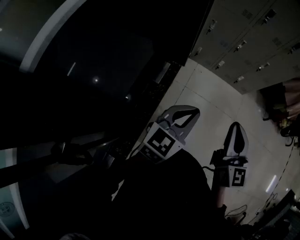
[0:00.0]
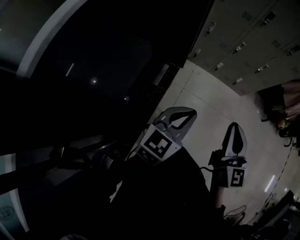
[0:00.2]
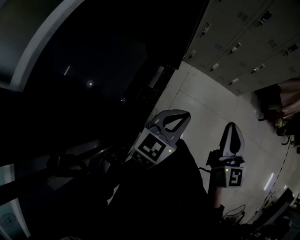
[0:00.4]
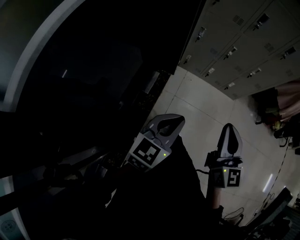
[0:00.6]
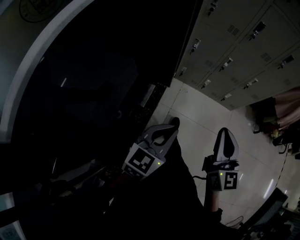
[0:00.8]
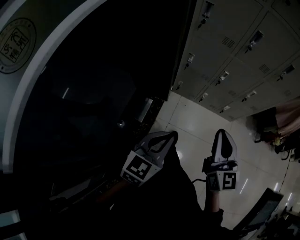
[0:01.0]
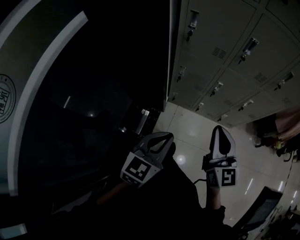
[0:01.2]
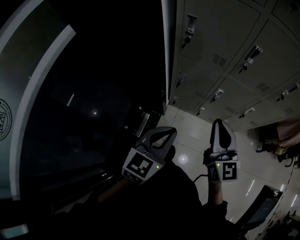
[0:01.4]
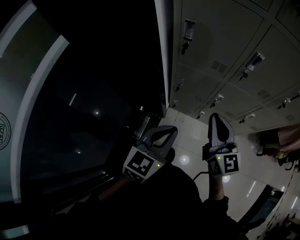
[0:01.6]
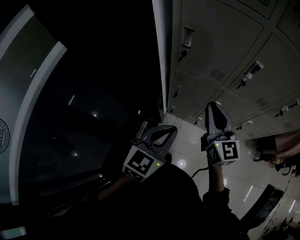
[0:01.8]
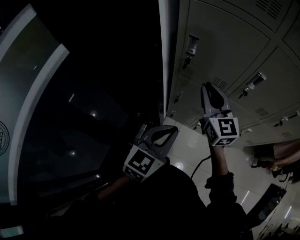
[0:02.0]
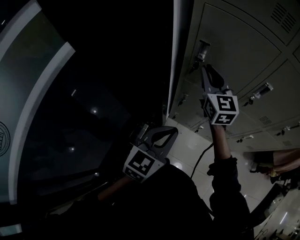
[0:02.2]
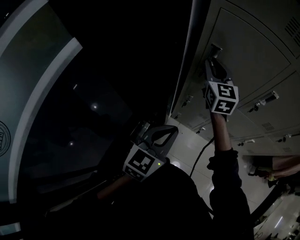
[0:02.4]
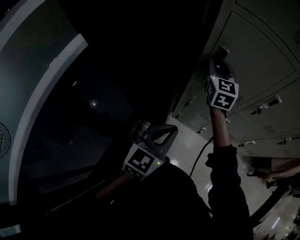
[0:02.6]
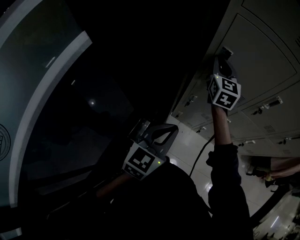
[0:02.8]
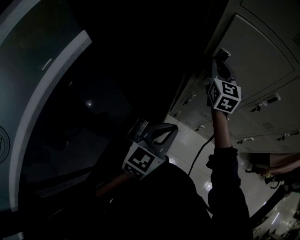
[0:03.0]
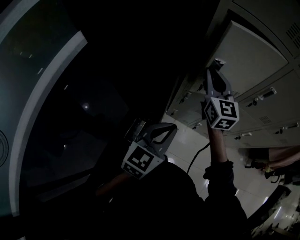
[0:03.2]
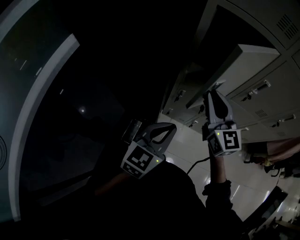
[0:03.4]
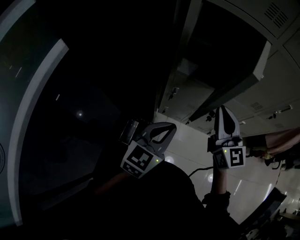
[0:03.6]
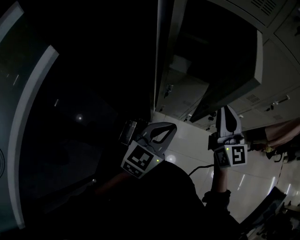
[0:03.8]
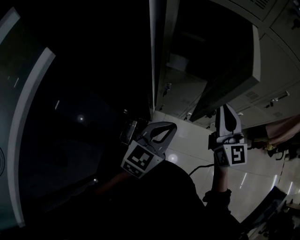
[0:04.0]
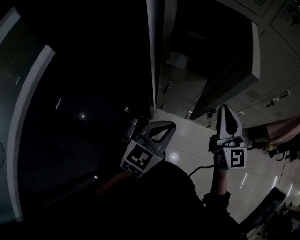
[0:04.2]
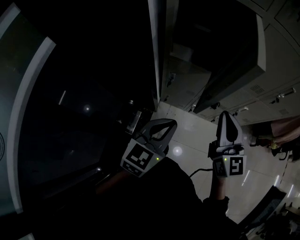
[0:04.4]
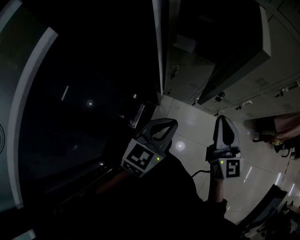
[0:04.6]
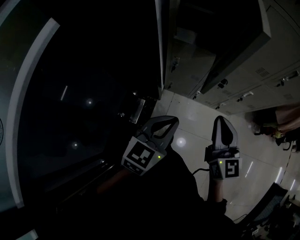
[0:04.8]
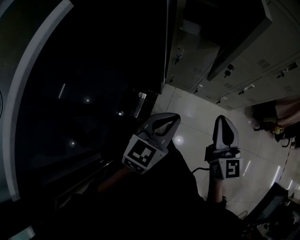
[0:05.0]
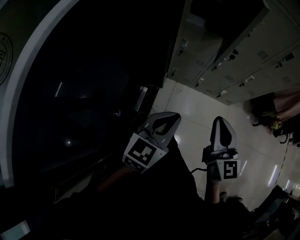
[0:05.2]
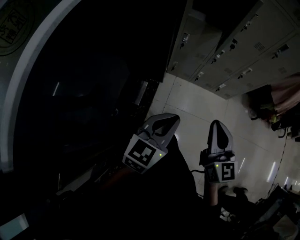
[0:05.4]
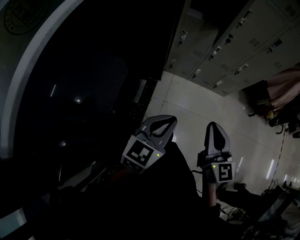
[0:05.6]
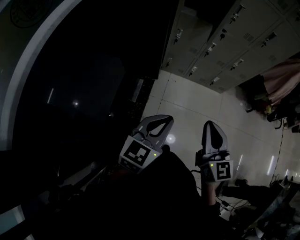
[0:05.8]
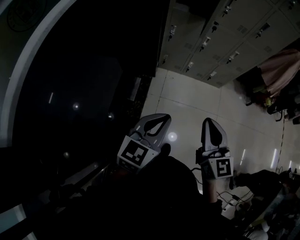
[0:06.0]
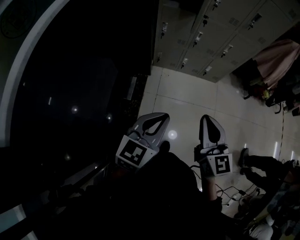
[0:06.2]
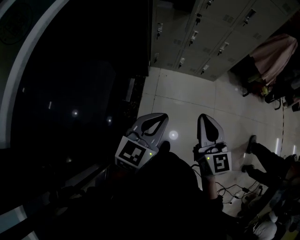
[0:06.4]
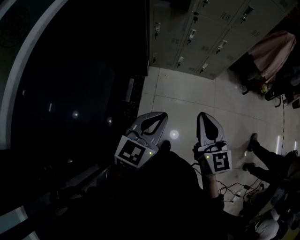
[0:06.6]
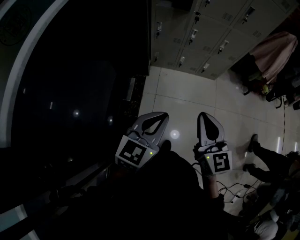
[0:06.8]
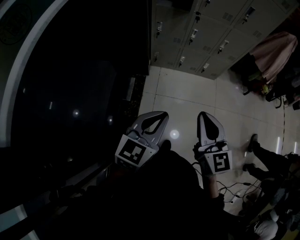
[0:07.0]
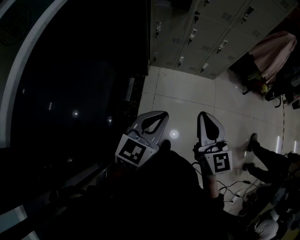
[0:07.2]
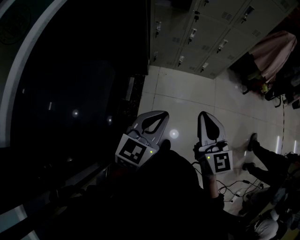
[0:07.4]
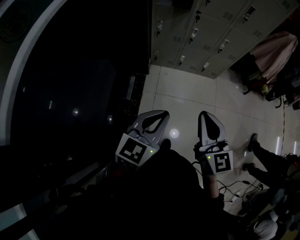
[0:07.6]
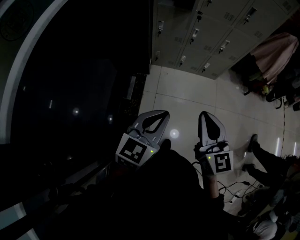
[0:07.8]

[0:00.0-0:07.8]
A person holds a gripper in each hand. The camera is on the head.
0:00.0 to 0:01.6: The two grippers travel together, forward, approximately 50 cm.
0:01.6 to 0:03.2: The right gripper travels forward and to the left by approximately 25 cm, while the left gripper shifts about 10 cm to the left and forward.
0:03.2 to 0:04.6: The right gripper heads backward and to the right, covering some 30 cm; the left gripper goes some 10 cm to the right and backward.
0:04.6 to 0:06.2: Both grippers move backward, some 40 cm.
0:06.2 to 0:07.8: The grippers move only a little.

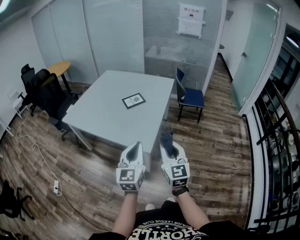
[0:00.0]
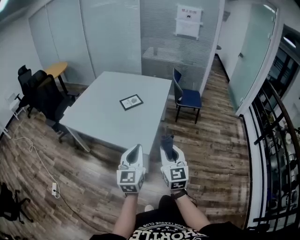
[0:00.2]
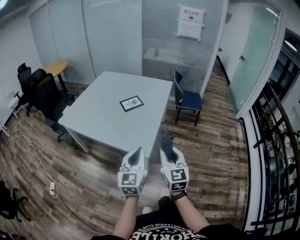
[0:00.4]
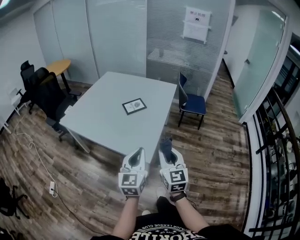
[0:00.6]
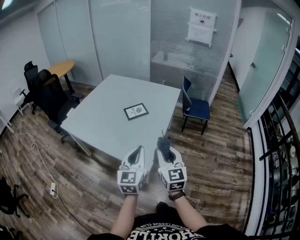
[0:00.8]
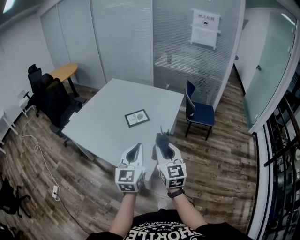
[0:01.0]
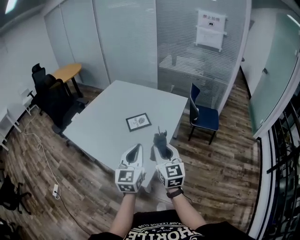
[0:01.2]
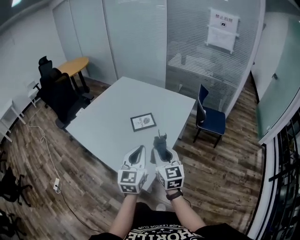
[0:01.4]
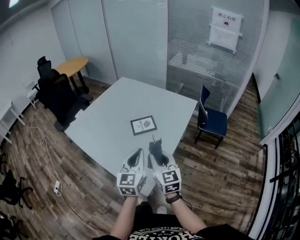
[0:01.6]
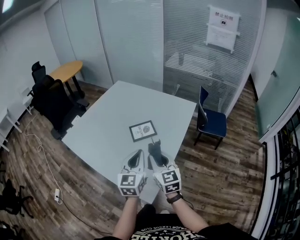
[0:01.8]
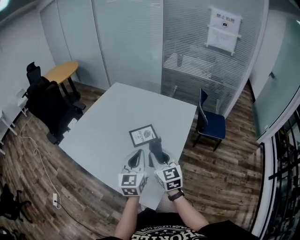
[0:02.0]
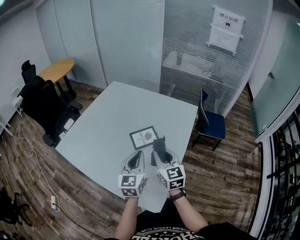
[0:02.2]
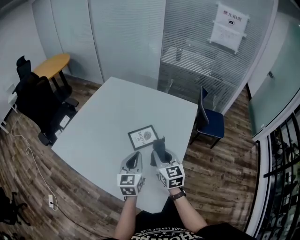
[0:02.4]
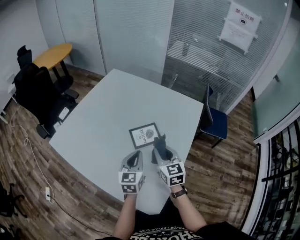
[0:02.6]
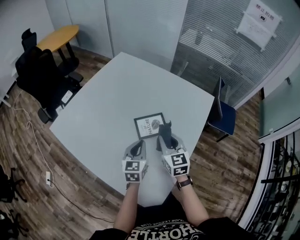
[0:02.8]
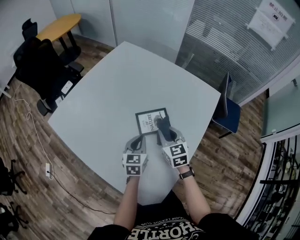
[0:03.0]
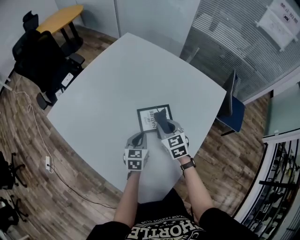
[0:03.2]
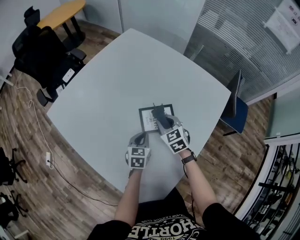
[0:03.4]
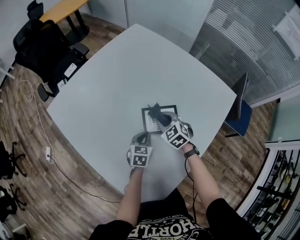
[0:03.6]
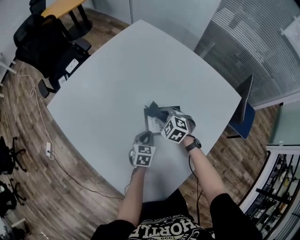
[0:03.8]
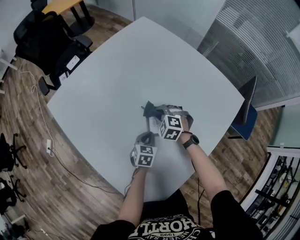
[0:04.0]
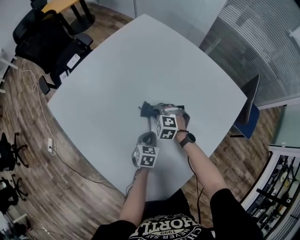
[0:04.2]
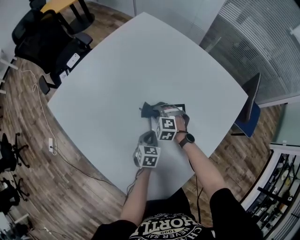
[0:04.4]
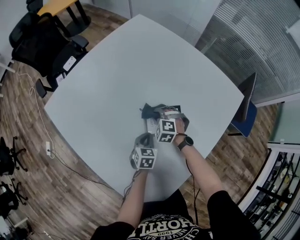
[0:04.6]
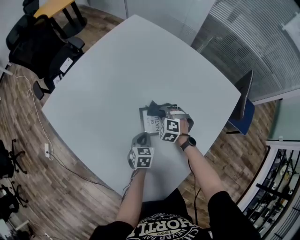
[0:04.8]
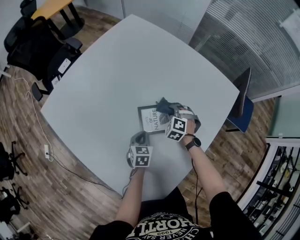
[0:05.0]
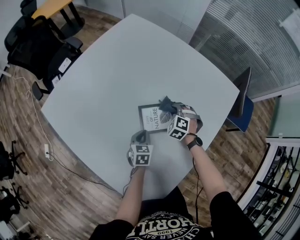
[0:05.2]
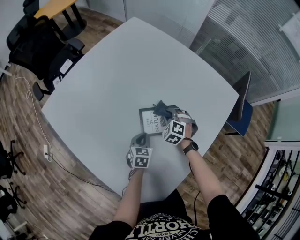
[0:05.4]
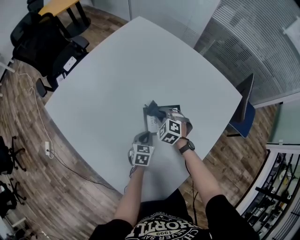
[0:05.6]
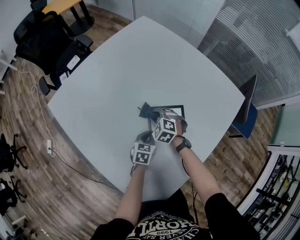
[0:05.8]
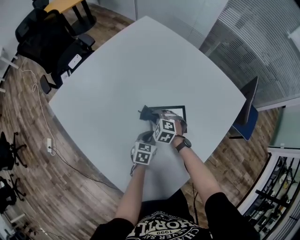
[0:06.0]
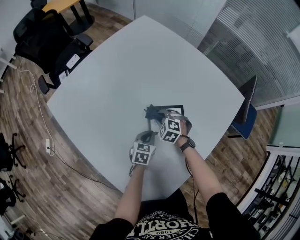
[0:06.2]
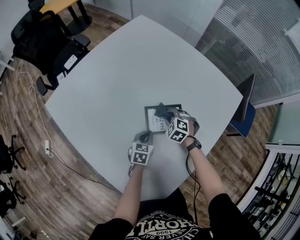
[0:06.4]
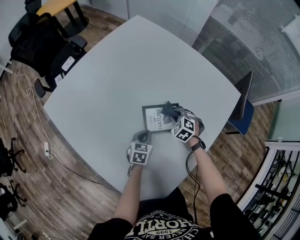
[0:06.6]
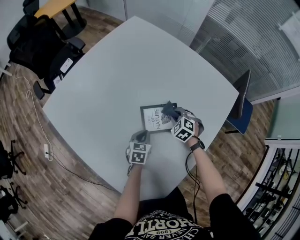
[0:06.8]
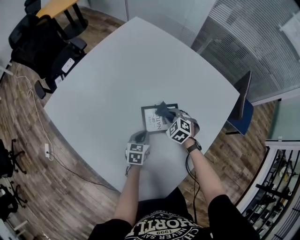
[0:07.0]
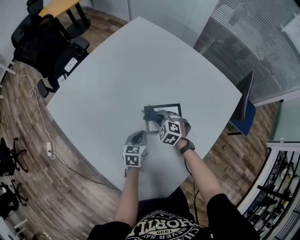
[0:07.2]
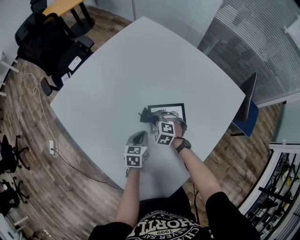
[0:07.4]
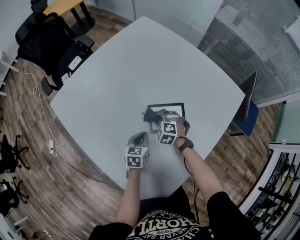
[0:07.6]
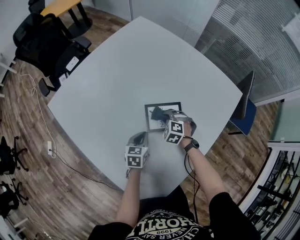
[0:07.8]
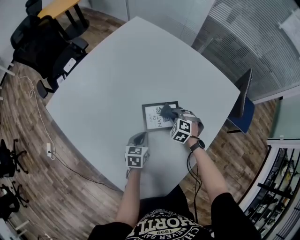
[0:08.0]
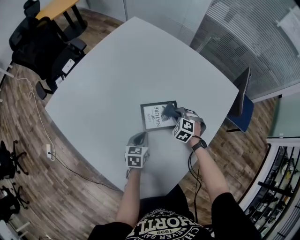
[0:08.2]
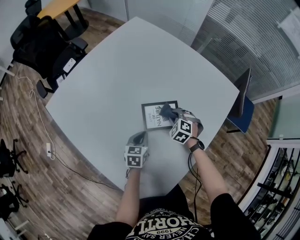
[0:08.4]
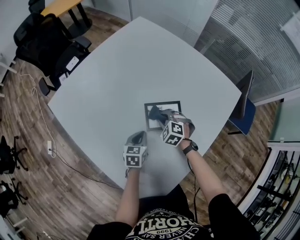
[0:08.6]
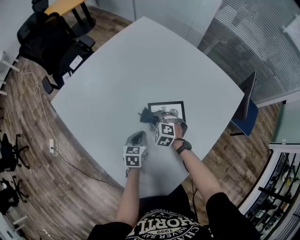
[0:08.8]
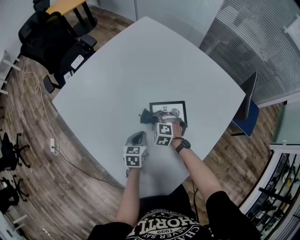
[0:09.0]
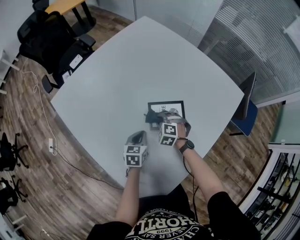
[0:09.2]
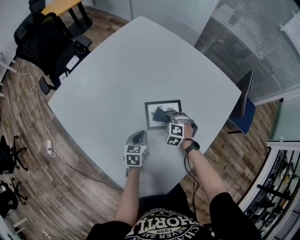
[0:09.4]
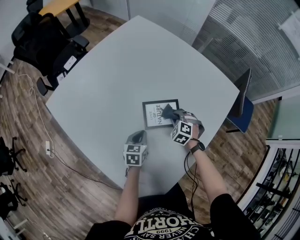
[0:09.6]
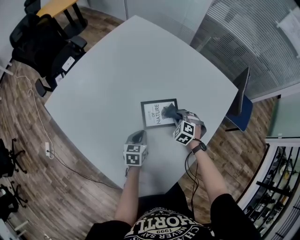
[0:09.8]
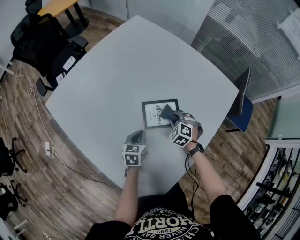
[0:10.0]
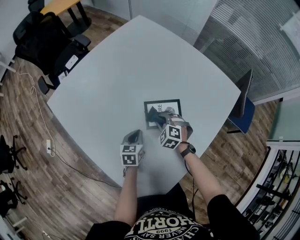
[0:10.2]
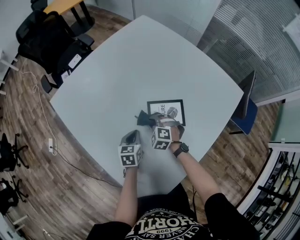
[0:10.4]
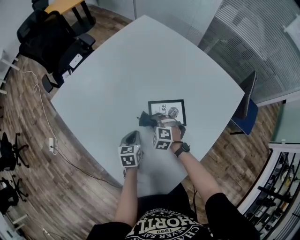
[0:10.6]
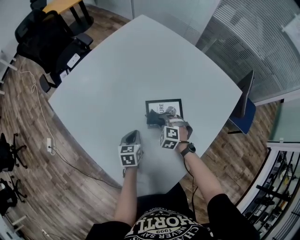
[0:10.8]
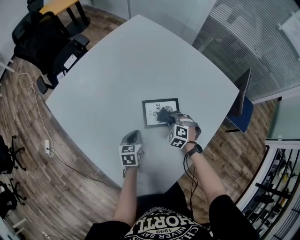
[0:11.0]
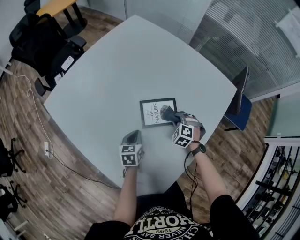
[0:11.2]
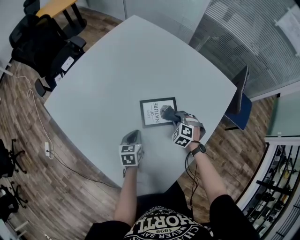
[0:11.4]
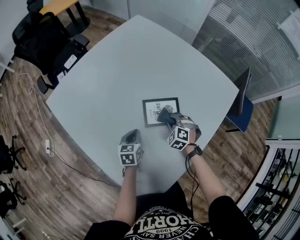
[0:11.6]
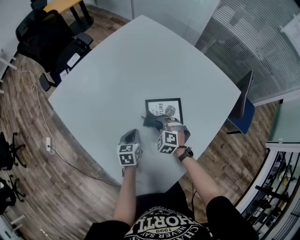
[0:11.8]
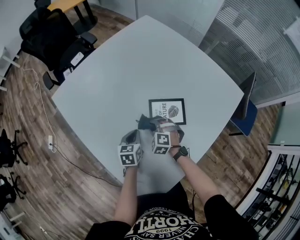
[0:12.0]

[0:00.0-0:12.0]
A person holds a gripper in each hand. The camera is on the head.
0:00.0 to 0:01.6: Both grippers travel together forward, approximately 35 cm. The right gripper turns by about 20 degrees.
0:01.6 to 0:03.0: The two grippers go about 40 cm forward and downward. The left gripper swivels roughly 20 degrees.
0:03.0 to 0:04.4: The right gripper travels downward, forward and to the left by some 25 cm, and rolls counterclockwise, seen from behind, by about 60 degrees; the left gripper moves downward, approximately 20 cm, and turns by some 20 degrees.
0:04.4 to 0:06.0: The right gripper moves roughly 15 cm to the right and comes back.
0:06.0 to 0:07.6: The right gripper goes to the right and returns, approximately 15 cm each way, while the left gripper goes some 5 cm to the left.
0:07.6 to 0:09.0: The right gripper moves approximately 15 cm to the right and comes back.
0:09.0 to 0:10.4: The right gripper goes to the right and returns, about 15 cm each way.
0:10.4 to 0:12.0: The right gripper travels to the right and back again, approximately 20 cm each way.

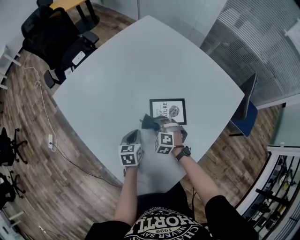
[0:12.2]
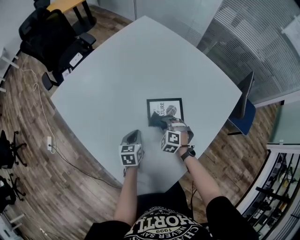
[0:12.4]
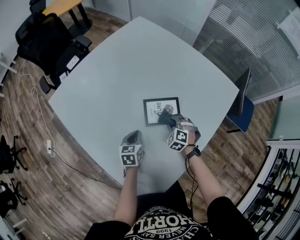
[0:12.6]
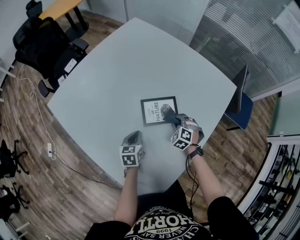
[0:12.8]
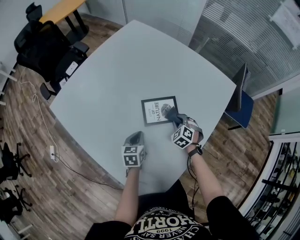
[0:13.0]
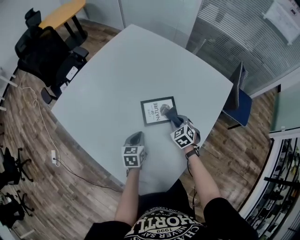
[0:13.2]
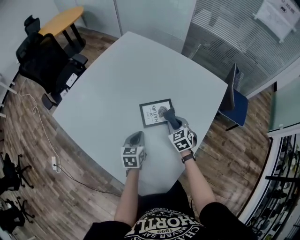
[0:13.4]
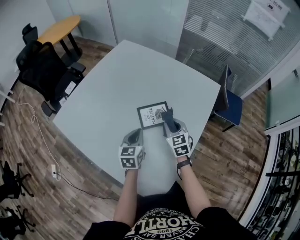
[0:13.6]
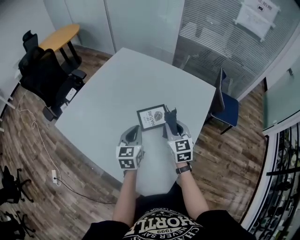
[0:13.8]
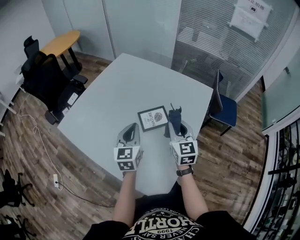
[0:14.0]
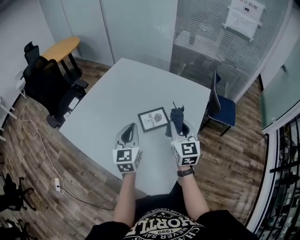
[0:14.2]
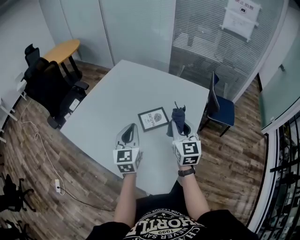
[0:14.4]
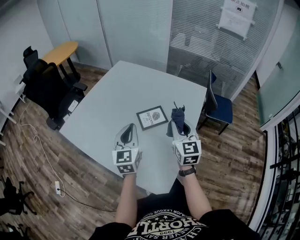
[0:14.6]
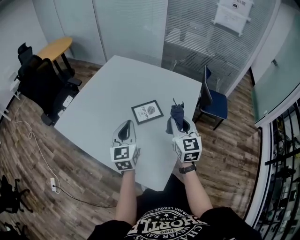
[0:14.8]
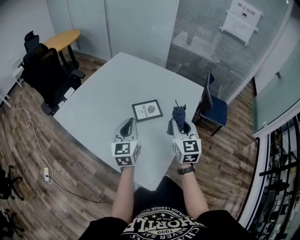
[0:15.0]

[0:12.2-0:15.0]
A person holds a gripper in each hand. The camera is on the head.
0:12.2 to 0:13.6: The two grippers go some 20 cm upward and to the right. The left gripper changes its angle by approximately 20 degrees. Meanwhile the right gripper rolls clockwise, seen from behind, by some 60 degrees.
0:13.6 to 0:15.0: The right gripper goes some 25 cm backward and upward, and rotates approximately 30 degrees. Meanwhile the left gripper moves upward and backward, roughly 20 cm, and turns by some 20 degrees.

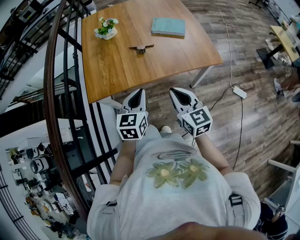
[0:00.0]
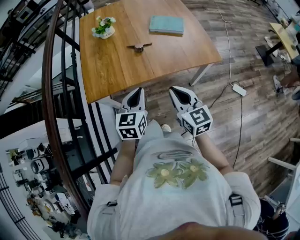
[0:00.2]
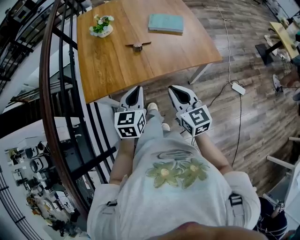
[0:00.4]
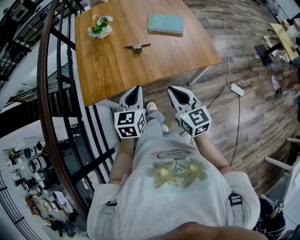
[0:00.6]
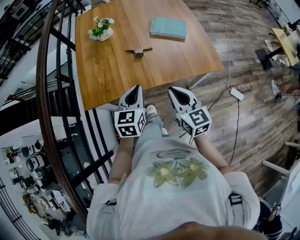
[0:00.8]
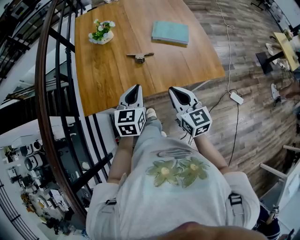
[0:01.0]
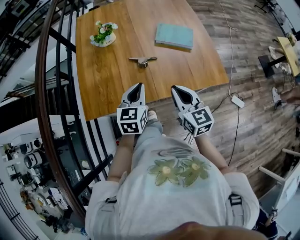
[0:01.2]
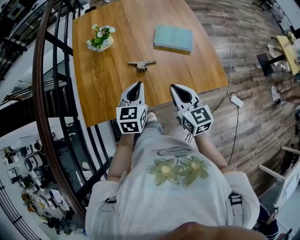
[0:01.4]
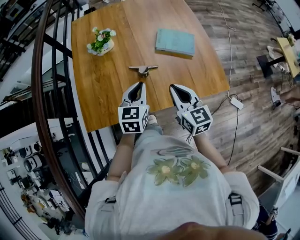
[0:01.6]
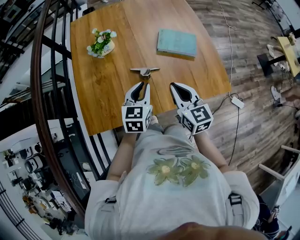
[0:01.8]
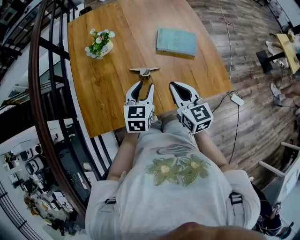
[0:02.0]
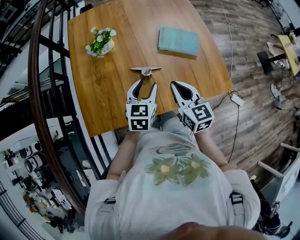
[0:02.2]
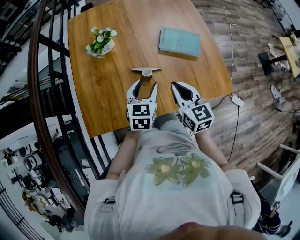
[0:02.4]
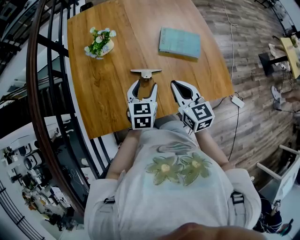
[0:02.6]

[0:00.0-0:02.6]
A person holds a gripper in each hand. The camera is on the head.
0:00.0 to 0:01.2: The grippers both shift forward by roughly 15 cm.
0:01.2 to 0:02.6: The right gripper shifts about 10 cm forward; the left gripper travels forward and downward by roughly 10 cm, and opens up.
